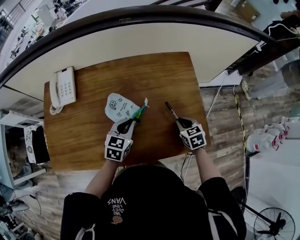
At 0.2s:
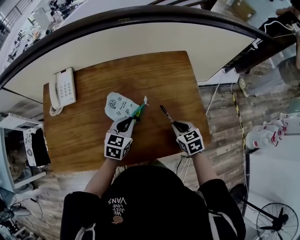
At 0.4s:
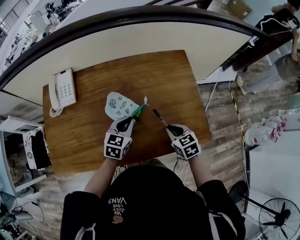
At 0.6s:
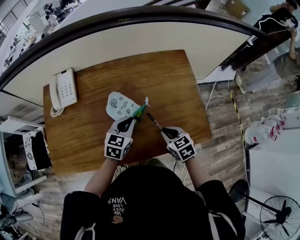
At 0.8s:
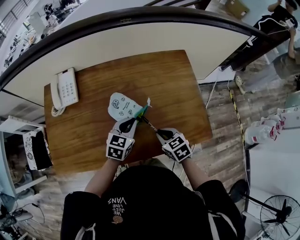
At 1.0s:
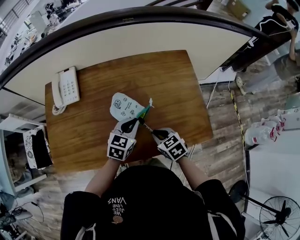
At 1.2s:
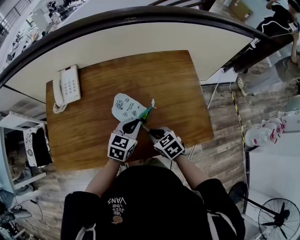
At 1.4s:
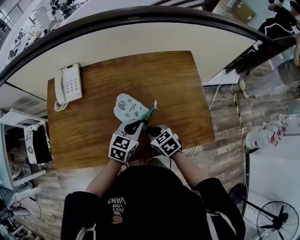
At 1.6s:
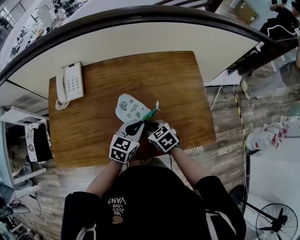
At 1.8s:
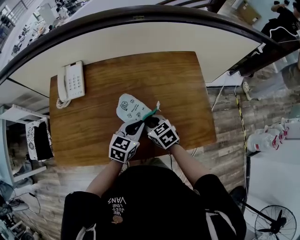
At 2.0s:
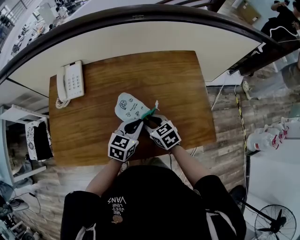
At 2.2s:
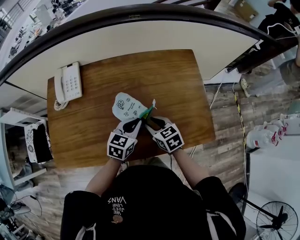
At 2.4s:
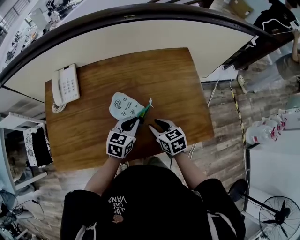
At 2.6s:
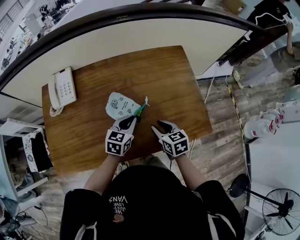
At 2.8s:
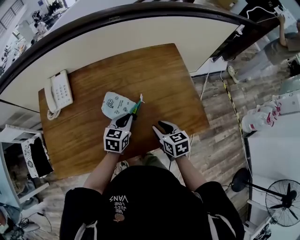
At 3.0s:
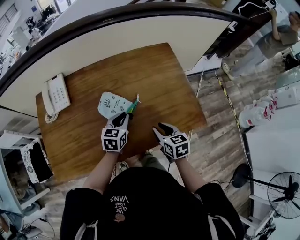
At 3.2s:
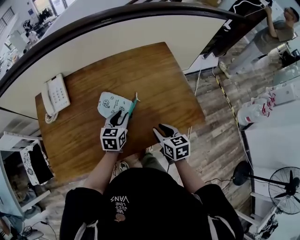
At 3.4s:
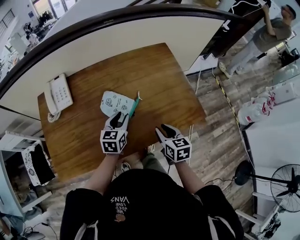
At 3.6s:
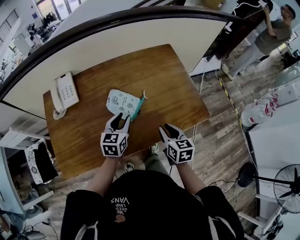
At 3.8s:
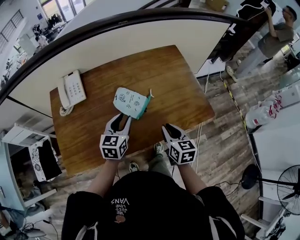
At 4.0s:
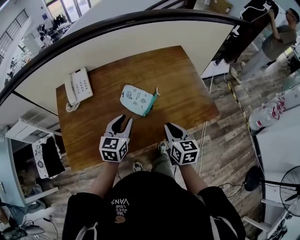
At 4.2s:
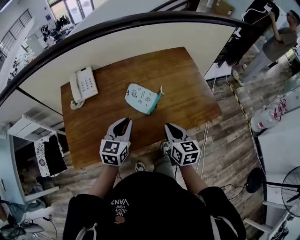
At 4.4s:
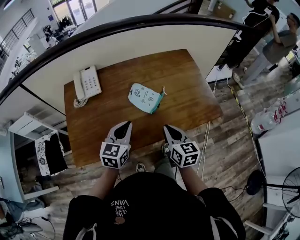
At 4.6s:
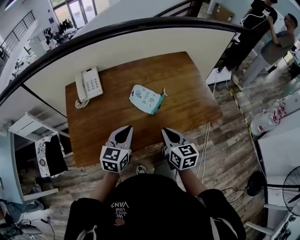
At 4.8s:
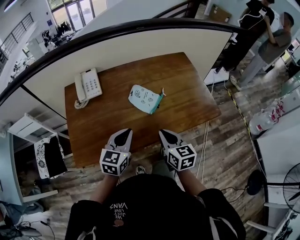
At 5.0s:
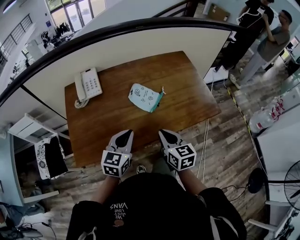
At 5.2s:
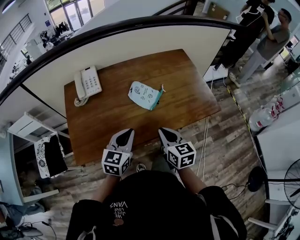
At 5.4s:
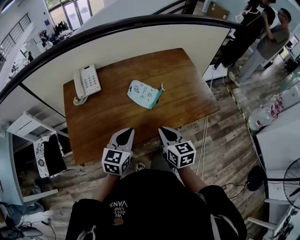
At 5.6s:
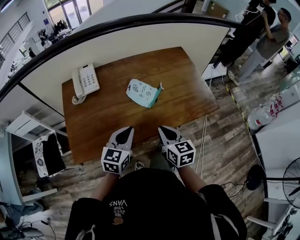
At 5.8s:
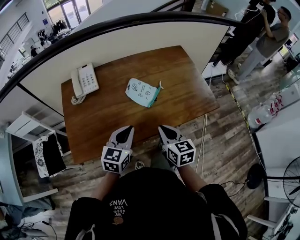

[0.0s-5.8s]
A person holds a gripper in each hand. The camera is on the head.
0.0s to 1.4s: The right gripper shifts about 20 cm to the left.
1.4s to 2.8s: The right gripper shifts about 10 cm to the right, and swivels roughly 30 degrees.
2.8s to 4.4s: The two grippers go roughly 20 cm backward, to the left and upward. The left gripper opens, then closes again. The right gripper rotates roughly 20 degrees, and closes.
4.4s to 5.8s: The left gripper shifts about 5 cm backward.

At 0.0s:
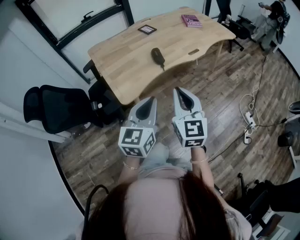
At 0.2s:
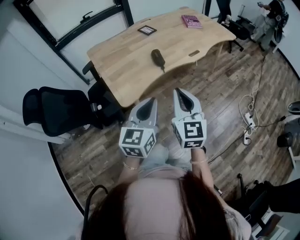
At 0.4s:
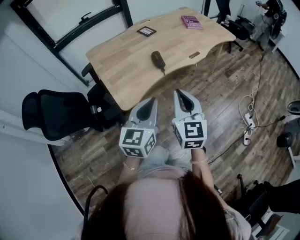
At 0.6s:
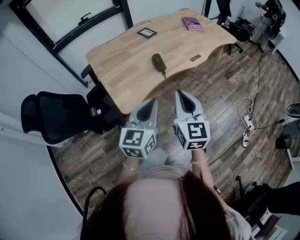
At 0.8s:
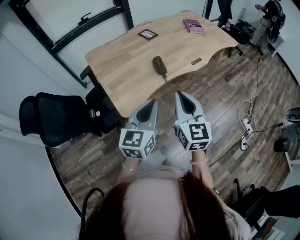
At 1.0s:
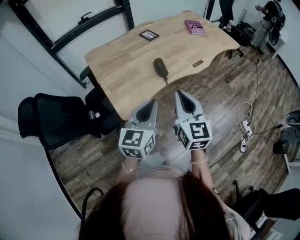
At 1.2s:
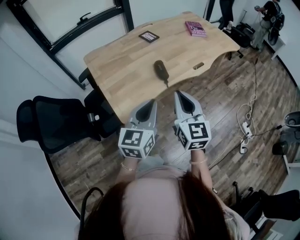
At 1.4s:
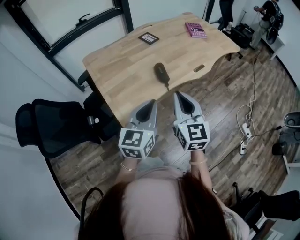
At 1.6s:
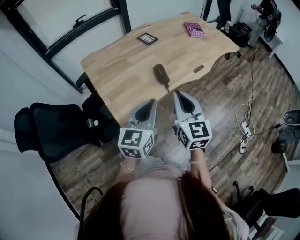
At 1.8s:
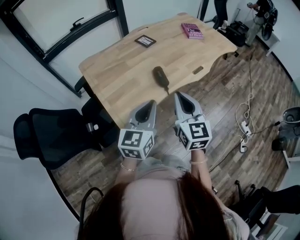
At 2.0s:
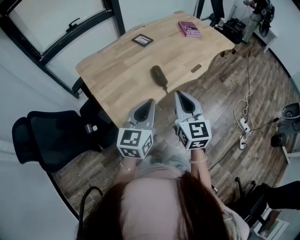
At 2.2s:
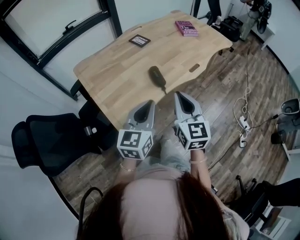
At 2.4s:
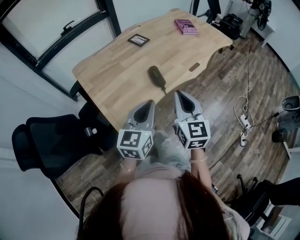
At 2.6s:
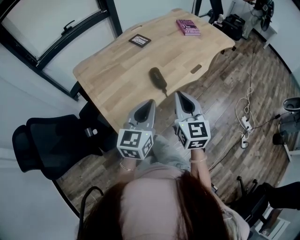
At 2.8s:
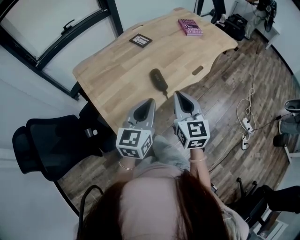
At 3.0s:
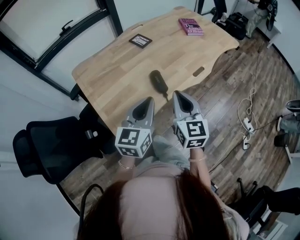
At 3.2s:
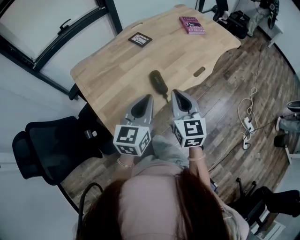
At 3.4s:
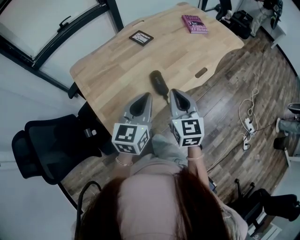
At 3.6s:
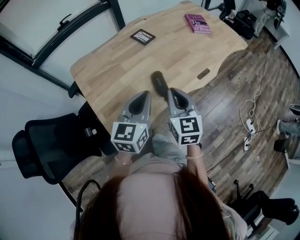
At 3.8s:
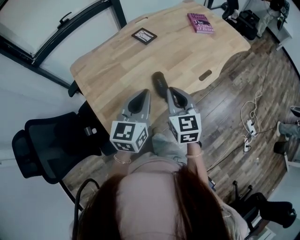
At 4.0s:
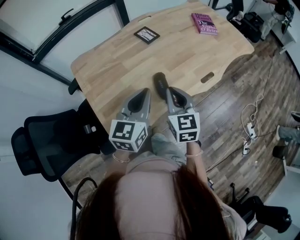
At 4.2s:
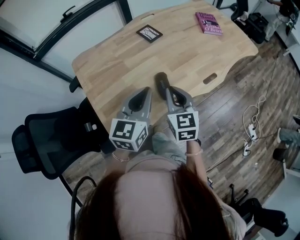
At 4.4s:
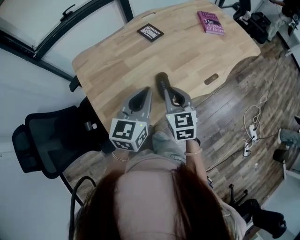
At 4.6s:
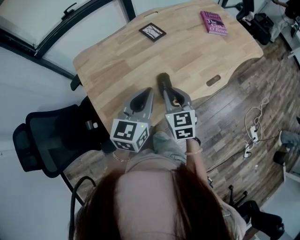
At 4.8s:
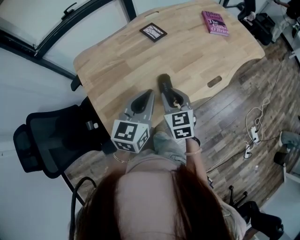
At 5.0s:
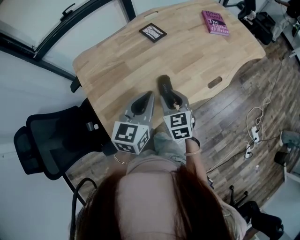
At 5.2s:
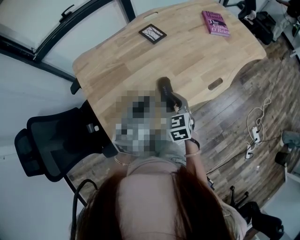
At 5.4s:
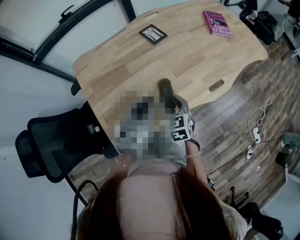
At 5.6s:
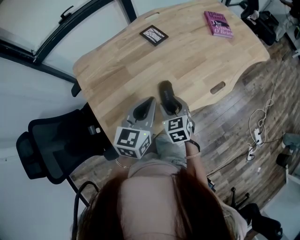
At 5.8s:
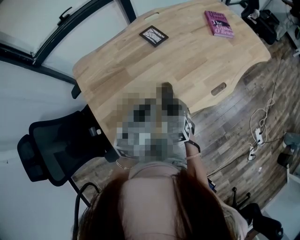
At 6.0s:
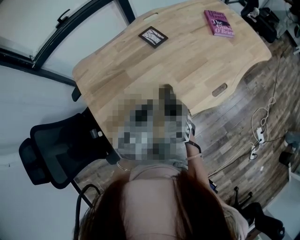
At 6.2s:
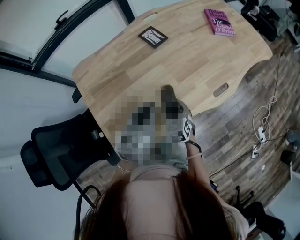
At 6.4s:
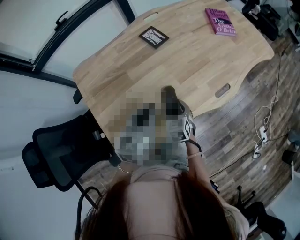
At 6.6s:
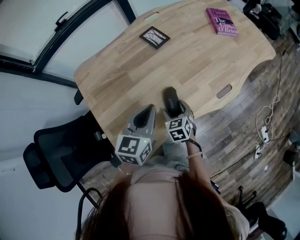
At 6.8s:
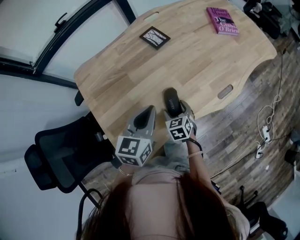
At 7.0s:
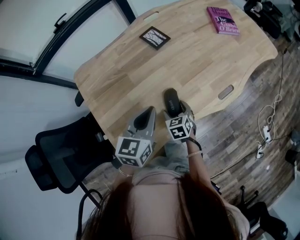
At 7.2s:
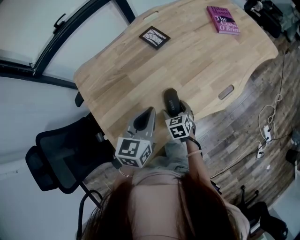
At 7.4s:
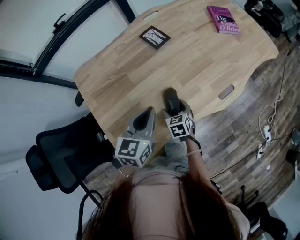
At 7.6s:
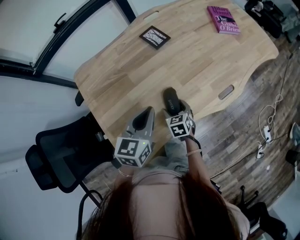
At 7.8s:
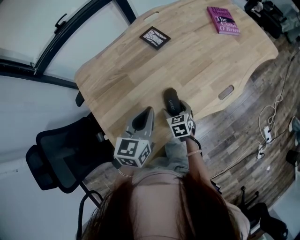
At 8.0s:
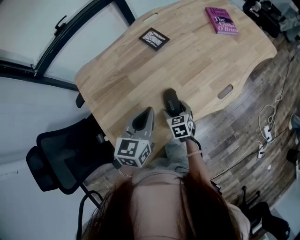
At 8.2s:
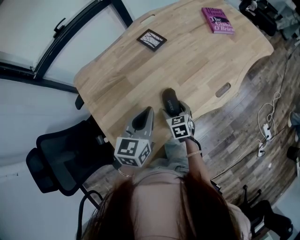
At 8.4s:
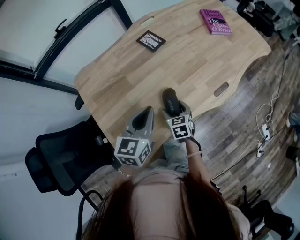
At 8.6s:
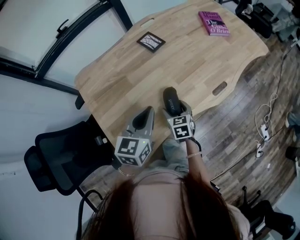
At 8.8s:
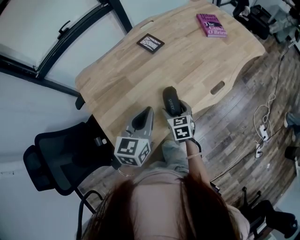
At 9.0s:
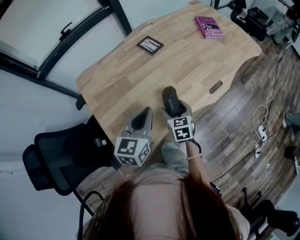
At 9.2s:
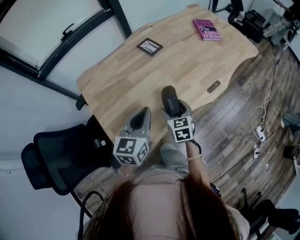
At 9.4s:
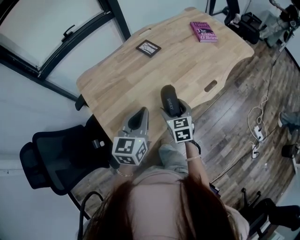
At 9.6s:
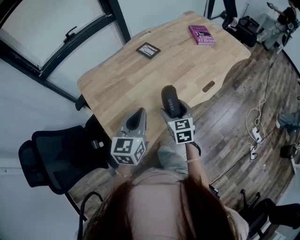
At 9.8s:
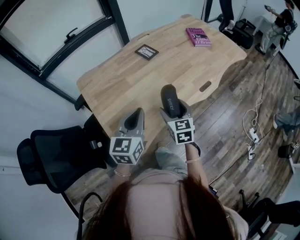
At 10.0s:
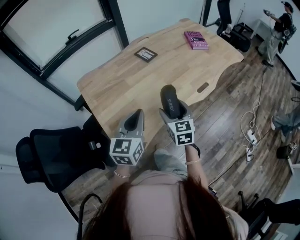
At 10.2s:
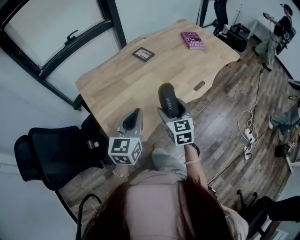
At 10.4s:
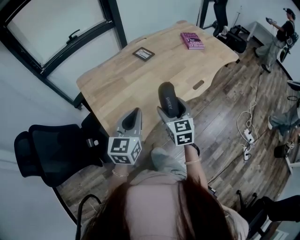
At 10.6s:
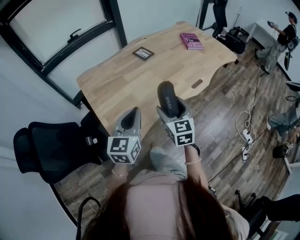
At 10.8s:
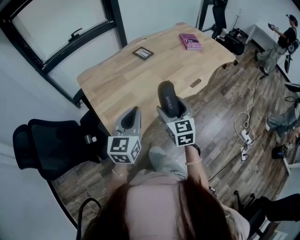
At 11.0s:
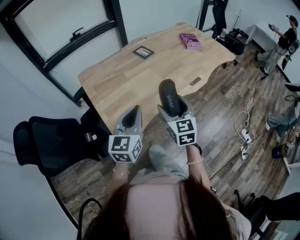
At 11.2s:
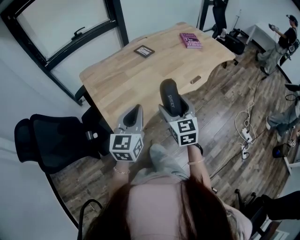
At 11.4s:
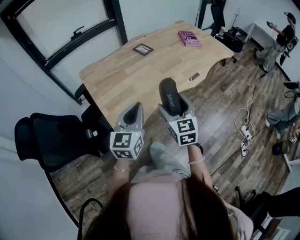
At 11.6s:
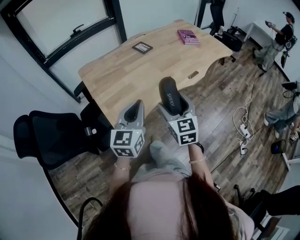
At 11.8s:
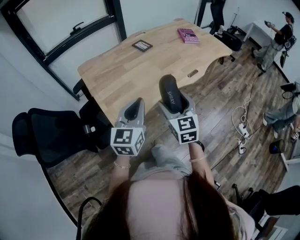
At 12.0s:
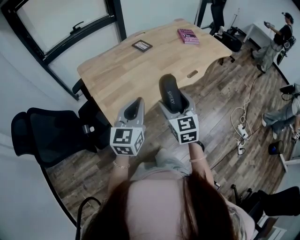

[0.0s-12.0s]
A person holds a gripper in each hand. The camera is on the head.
0.0s to 1.6s: The grippers both shift forward by some 20 cm.
1.6s to 3.0s: Both grippers travel together forward, about 10 cm.
3.0s to 4.4s: The left gripper goes about 15 cm forward, while the right gripper goes some 15 cm forward and downward.
4.4s to 6.0s: The right gripper is displaced downward by approximately 15 cm, rotates roughly 20 degrees, and opens. Meanwhile the left gripper moves forward and downward, some 10 cm.
6.0s to 7.6s: The right gripper moves downward, approximately 10 cm.
7.6s to 9.0s: The right gripper shifts about 10 cm upward and backward; the left gripper moves backward, about 5 cm.
9.0s to 10.4s: The left gripper moves backward, about 15 cm, while the right gripper moves upward and backward, approximately 20 cm.
10.4s to 12.0s: The grippers both shift backward by about 10 cm.

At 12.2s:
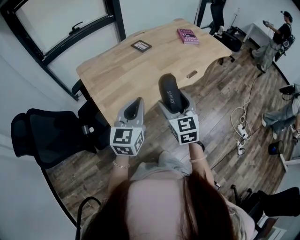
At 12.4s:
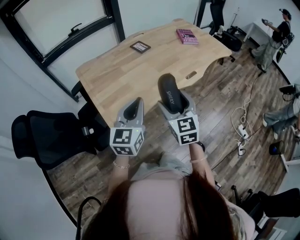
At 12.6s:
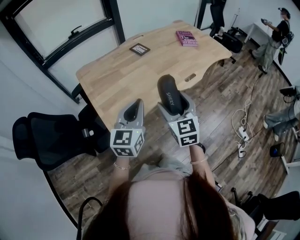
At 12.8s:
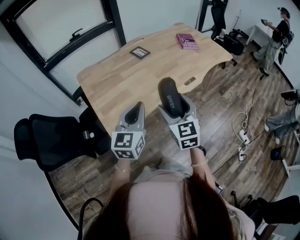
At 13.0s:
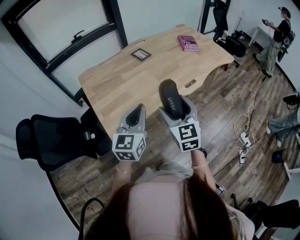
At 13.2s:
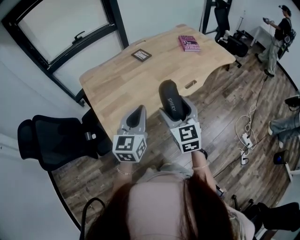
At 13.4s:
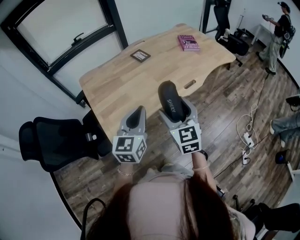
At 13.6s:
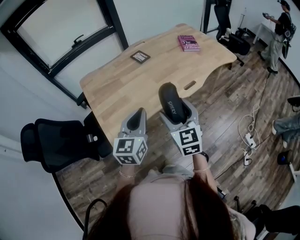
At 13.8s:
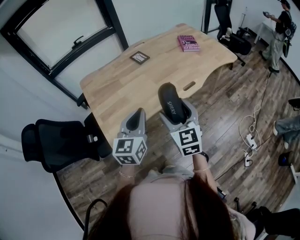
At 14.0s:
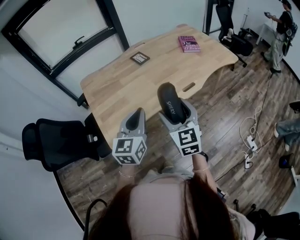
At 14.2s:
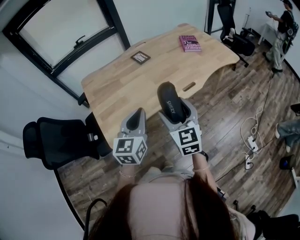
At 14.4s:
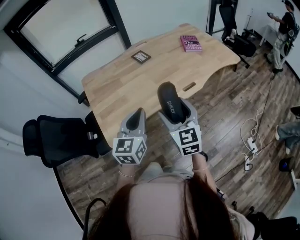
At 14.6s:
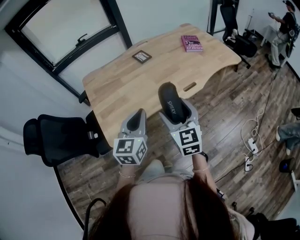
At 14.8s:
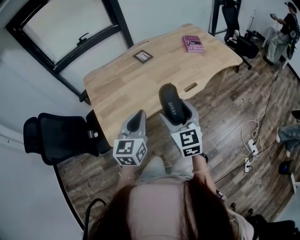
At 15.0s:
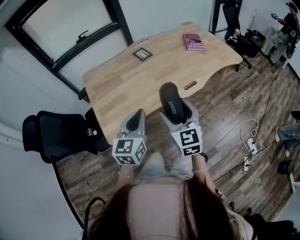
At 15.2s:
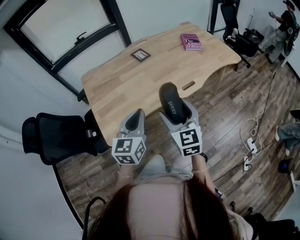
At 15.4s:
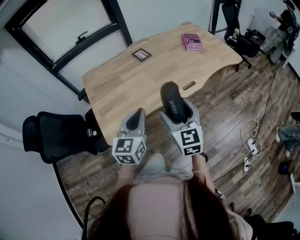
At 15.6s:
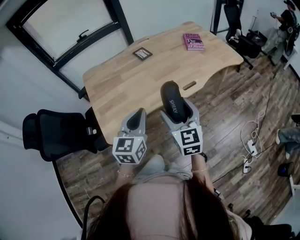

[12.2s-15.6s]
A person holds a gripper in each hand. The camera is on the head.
12.2s to 13.8s: Both grippers move to the right, about 10 cm.
13.8s to 15.6s: There are only small adjustments of the grippers.

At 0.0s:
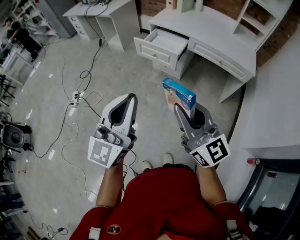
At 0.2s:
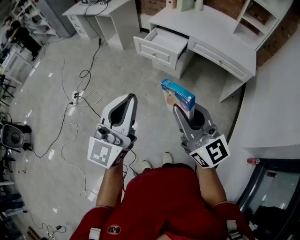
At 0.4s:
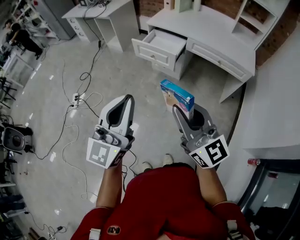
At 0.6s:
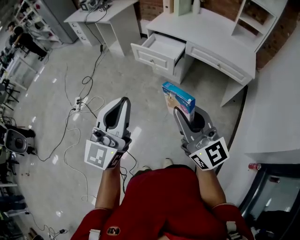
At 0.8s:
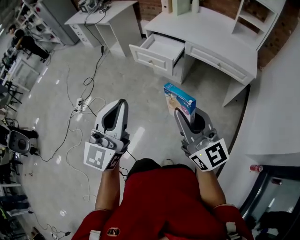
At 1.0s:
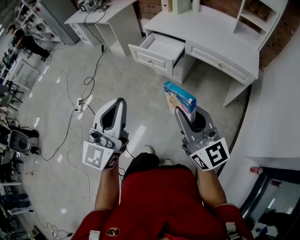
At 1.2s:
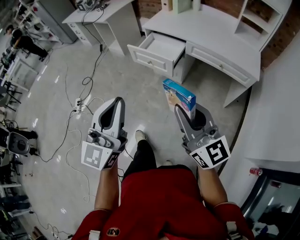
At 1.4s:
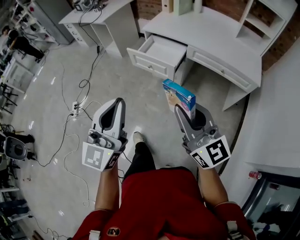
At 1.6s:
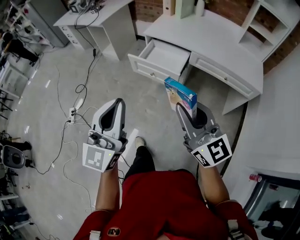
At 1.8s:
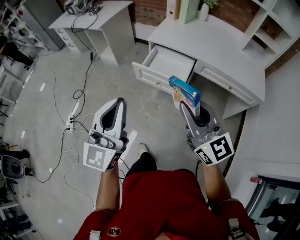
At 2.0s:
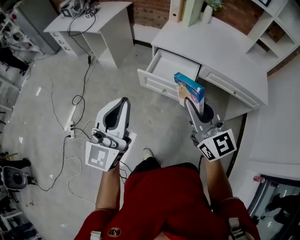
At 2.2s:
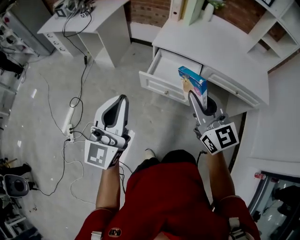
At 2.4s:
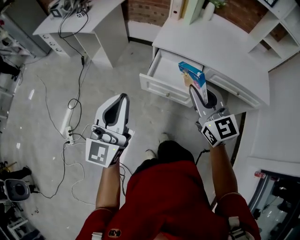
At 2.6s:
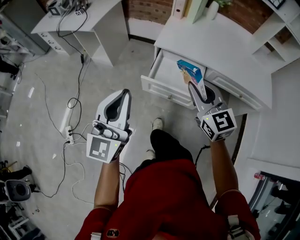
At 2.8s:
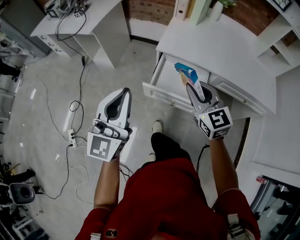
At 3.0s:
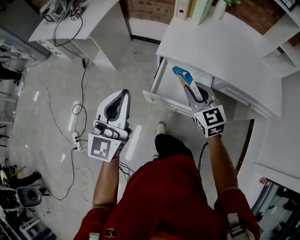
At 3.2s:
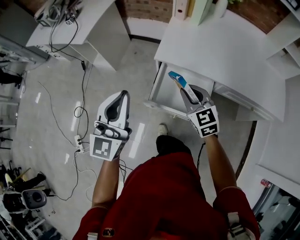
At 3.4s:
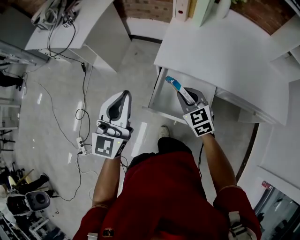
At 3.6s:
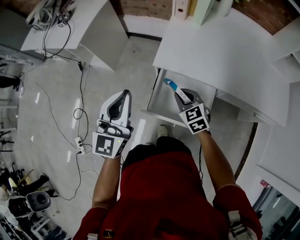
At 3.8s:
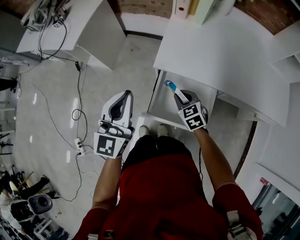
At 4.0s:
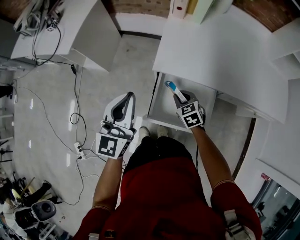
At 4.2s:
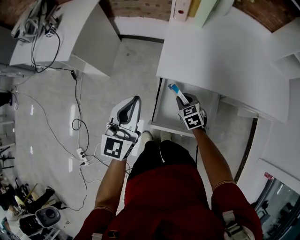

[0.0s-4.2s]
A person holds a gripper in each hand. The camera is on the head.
0.0s to 1.4s: The left gripper heads forward, covering about 15 cm; the right gripper goes approximately 15 cm forward and to the right.
1.4s to 2.8s: The pair of grippers is taken forward and to the left, approximately 50 cm. The right gripper swivels some 30 degrees.
2.8s to 4.2s: The left gripper is displaced forward and downward by about 30 cm; the right gripper shifts about 35 cm downward and forward, and tips its fingers downward by some 30 degrees.
